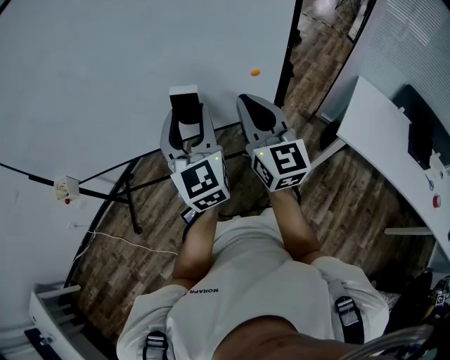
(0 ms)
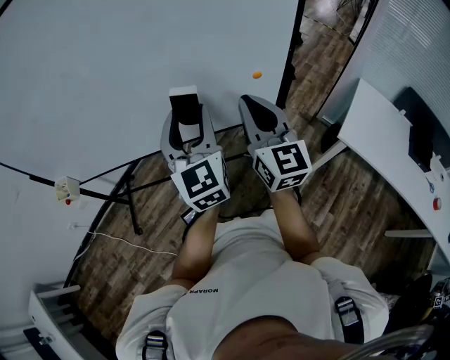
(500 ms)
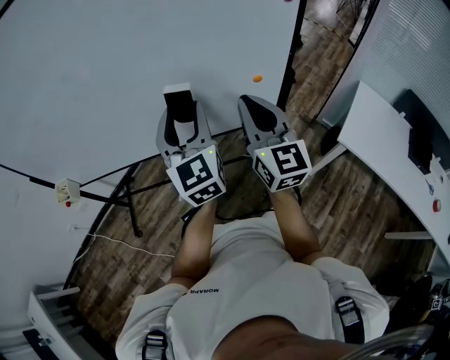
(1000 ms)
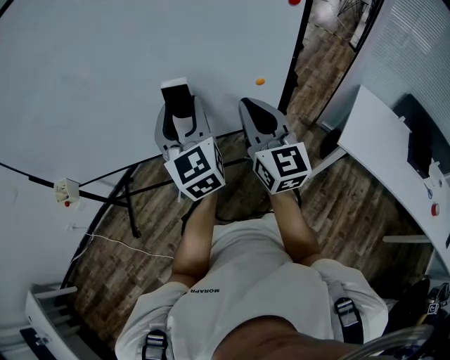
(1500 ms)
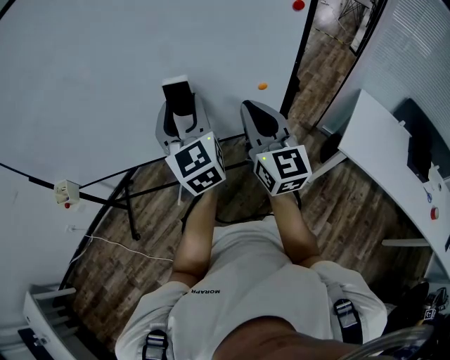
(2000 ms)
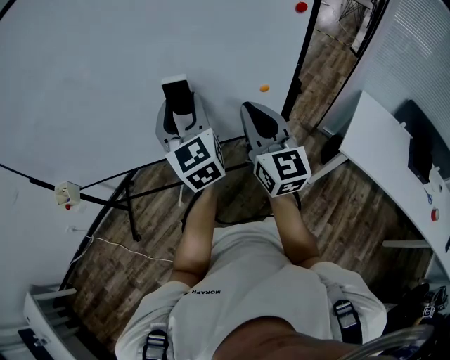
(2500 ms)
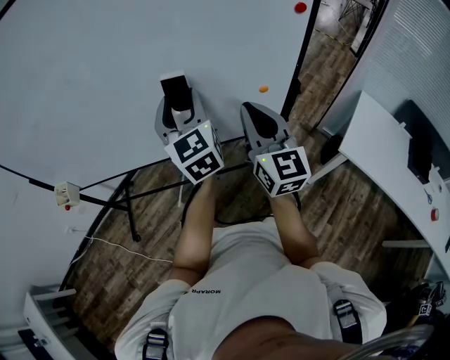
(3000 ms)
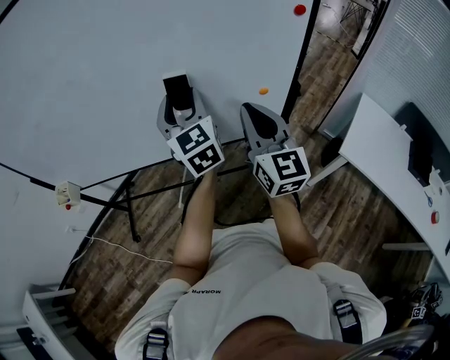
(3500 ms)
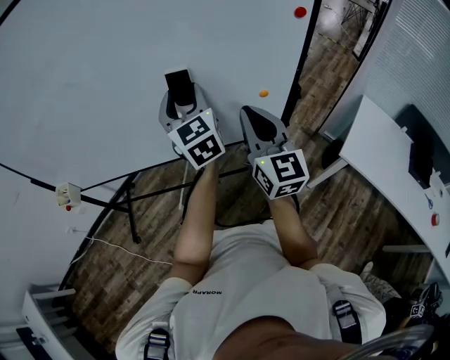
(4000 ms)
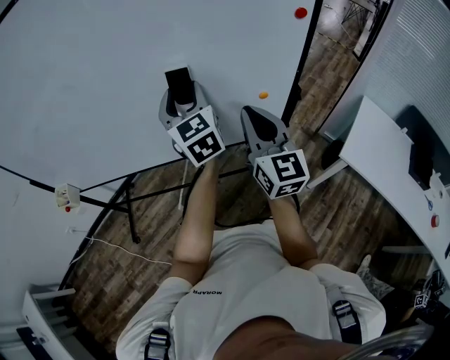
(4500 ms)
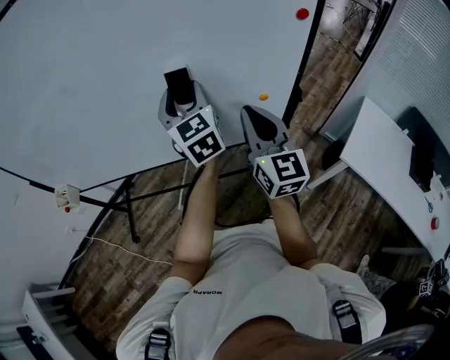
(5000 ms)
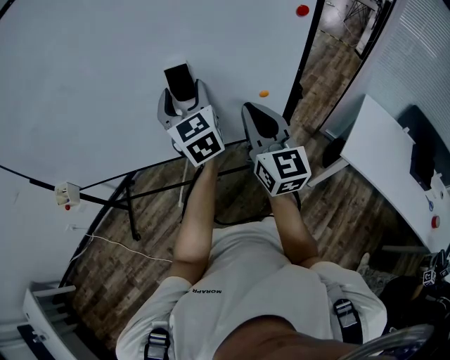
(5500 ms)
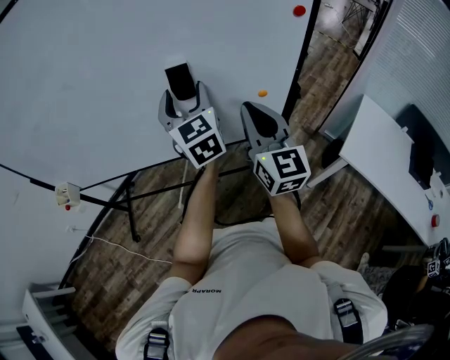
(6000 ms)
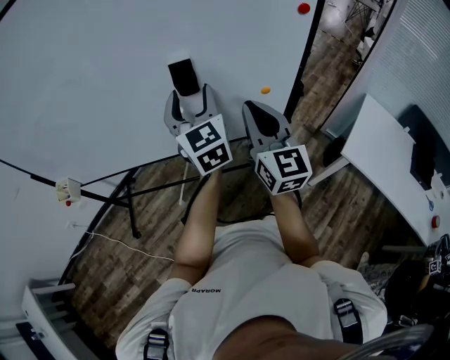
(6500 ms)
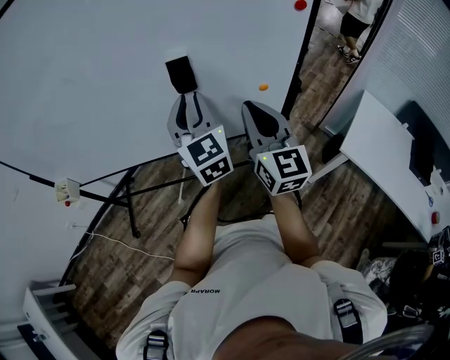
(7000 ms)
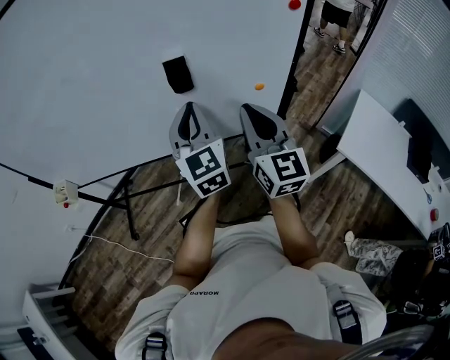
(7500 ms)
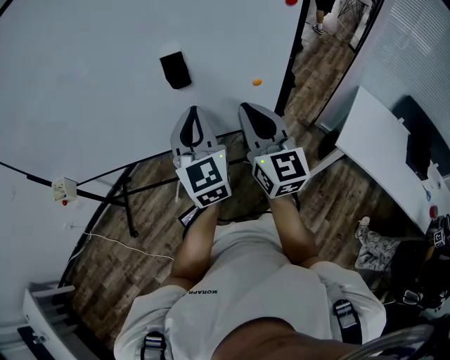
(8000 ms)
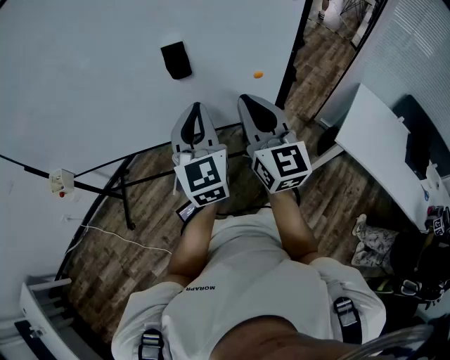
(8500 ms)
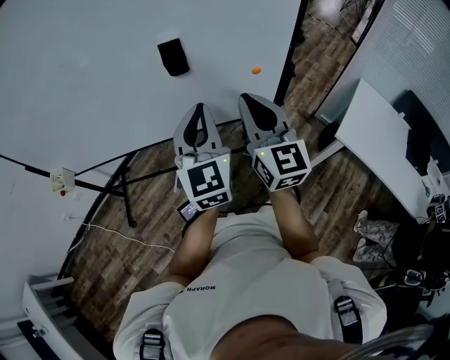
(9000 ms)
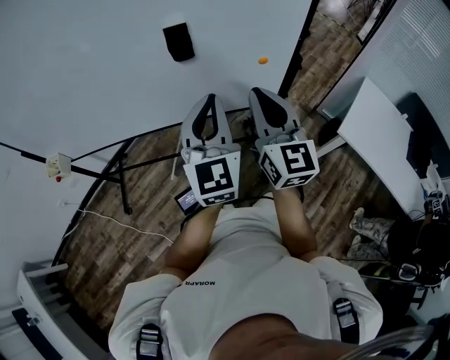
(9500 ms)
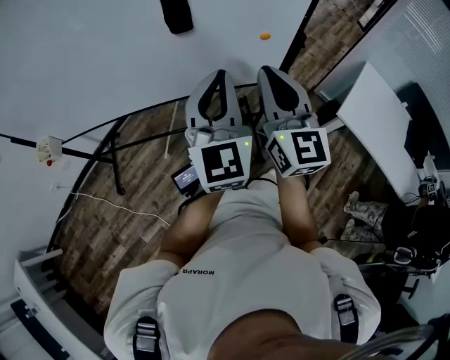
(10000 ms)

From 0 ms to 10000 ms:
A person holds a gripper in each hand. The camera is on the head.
From 0 ms to 2000 ms: The left gripper is displaced forward by approximately 5 cm.
From 2000 ms to 4000 ms: The left gripper travels forward by roughly 5 cm.
From 4000 ms to 6000 ms: There are only small adjustments of the grippers.
From 6000 ms to 8000 ms: The left gripper moves backward, roughly 10 cm, and closes up.
From 8000 ms to 10000 ms: The left gripper shifts approximately 5 cm backward.

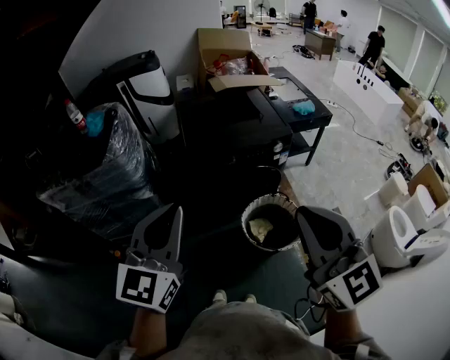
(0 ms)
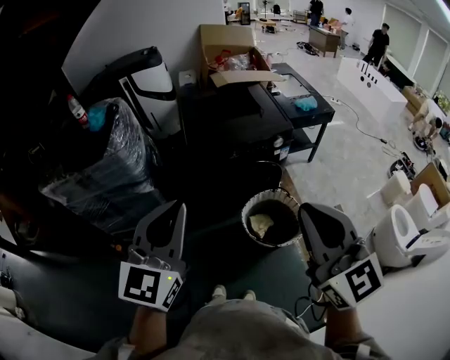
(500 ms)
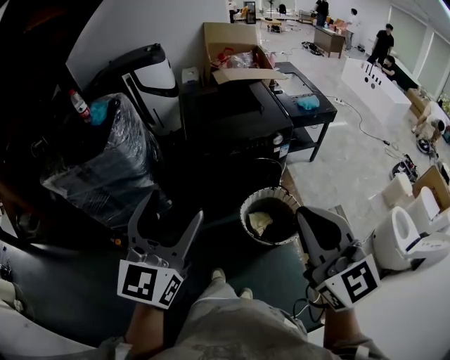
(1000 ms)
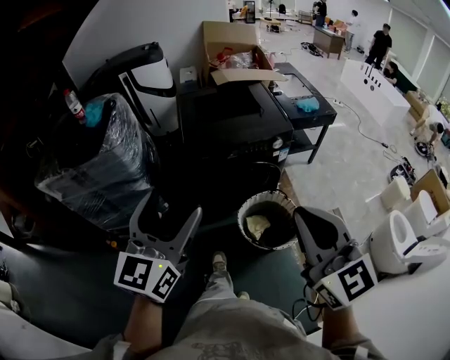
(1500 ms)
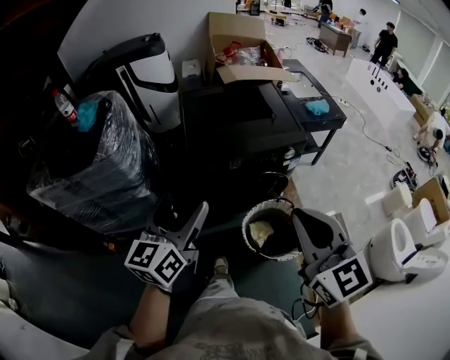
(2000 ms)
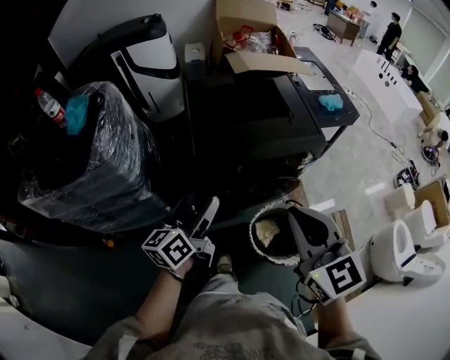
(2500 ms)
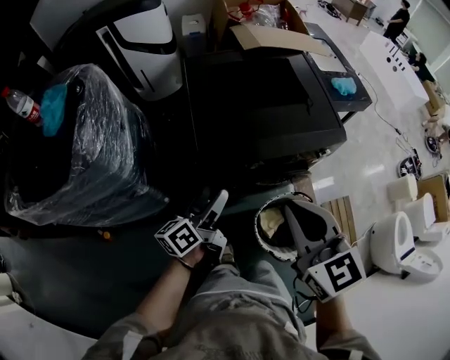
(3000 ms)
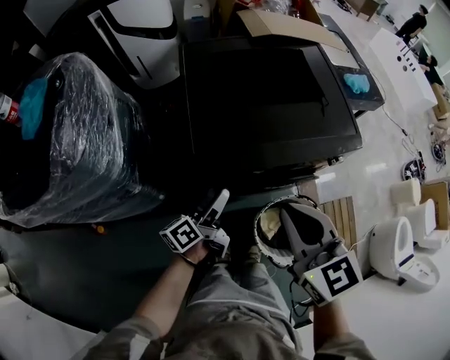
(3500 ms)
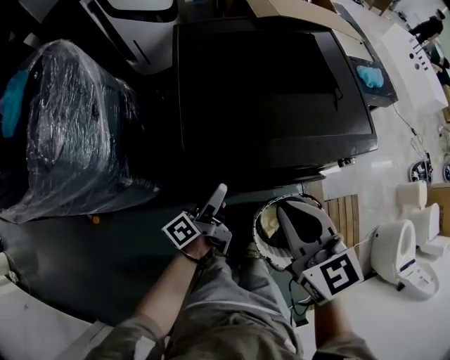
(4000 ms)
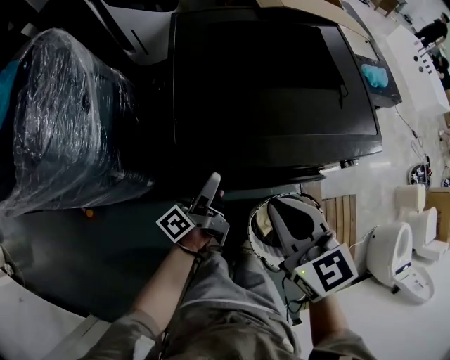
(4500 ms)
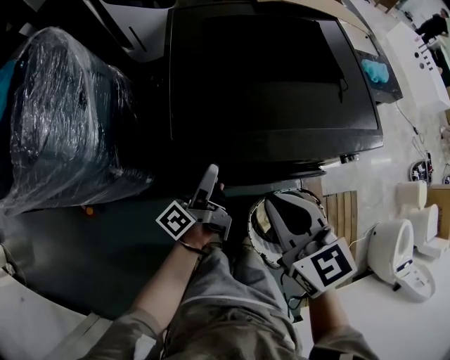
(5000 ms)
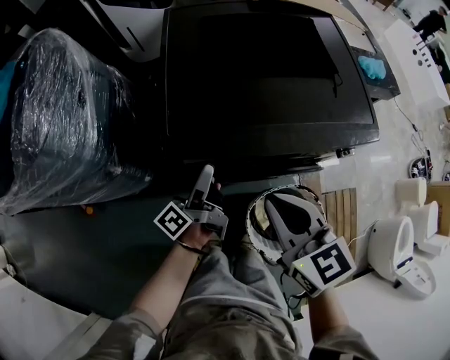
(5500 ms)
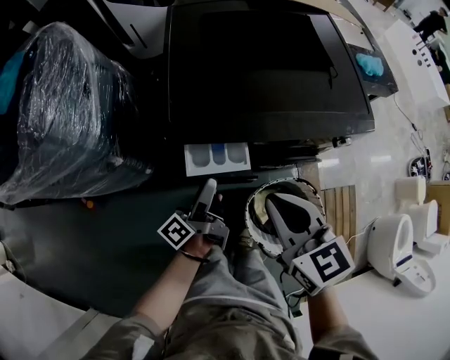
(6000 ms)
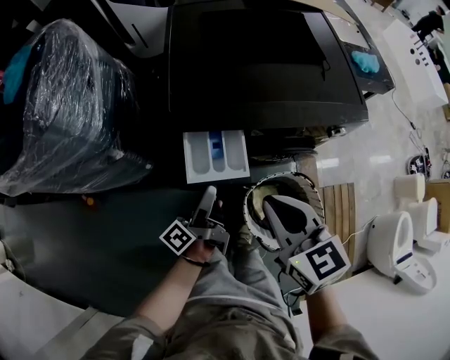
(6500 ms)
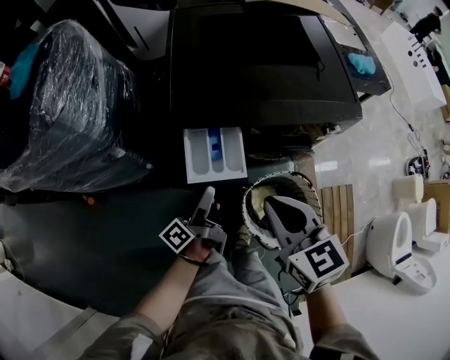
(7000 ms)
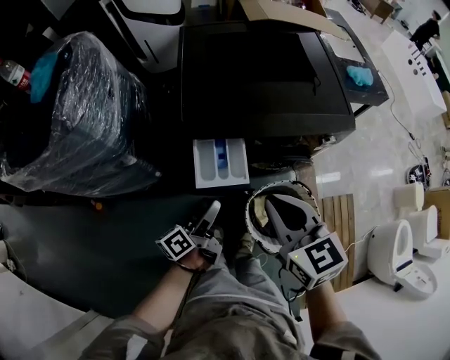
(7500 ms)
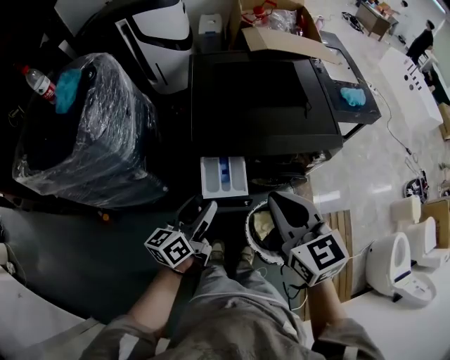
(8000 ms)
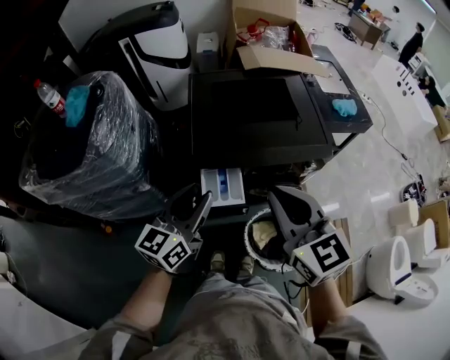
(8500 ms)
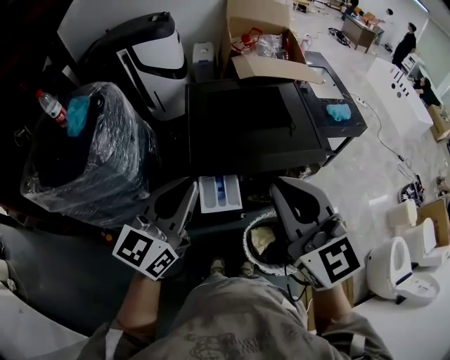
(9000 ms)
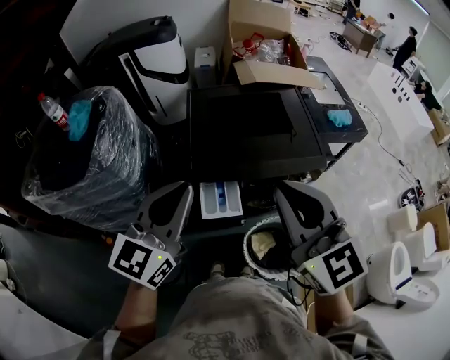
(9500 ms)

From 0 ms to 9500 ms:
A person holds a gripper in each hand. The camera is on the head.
From 0 ms to 2000 ms: Both grippers travel together forward and downward, approximately 15 cm. The left gripper rotates roughly 30 degrees, and opens its fingers.
From 2000 ms to 4000 ms: The left gripper moves downward and forward, some 40 cm, and rotates around the line of its fingers by approximately 60 degrees, counterclockwise from behind, while the right gripper heads forward and downward, covering roughly 35 cm, and changes its angle by about 20 degrees.
From 4000 ms to 5500 ms: There are only small adjustments of the grippers.
From 5500 ms to 7500 ms: The right gripper goes about 10 cm backward and upward, while the left gripper is displaced backward by roughly 15 cm, and rotates roughly 20 degrees.
From 7500 ms to 9500 ms: Both grippers move upward, about 35 cm. The left gripper rotates around the line of its fingers by some 70 degrees, clockwise from behind, and closes its fingers, while the right gripper swivels roughly 30 degrees.

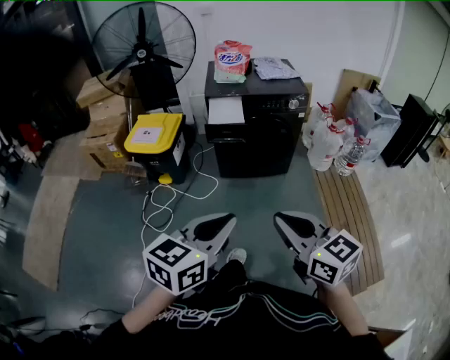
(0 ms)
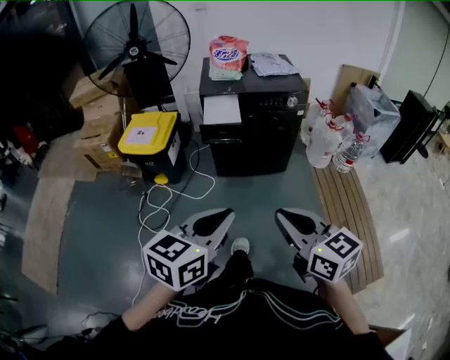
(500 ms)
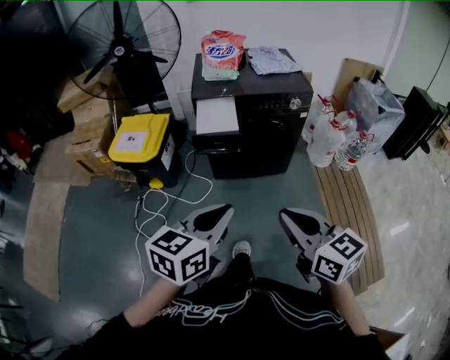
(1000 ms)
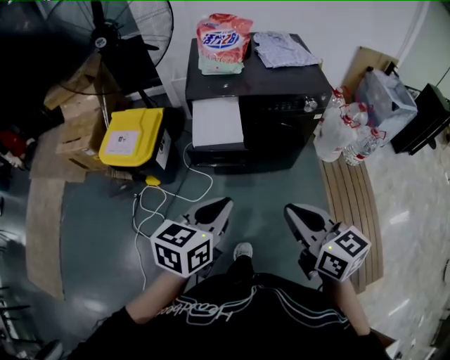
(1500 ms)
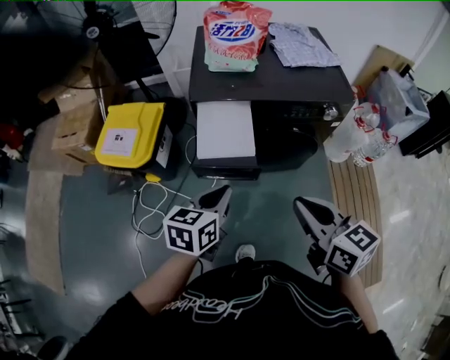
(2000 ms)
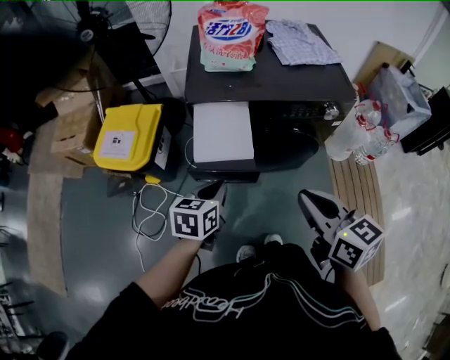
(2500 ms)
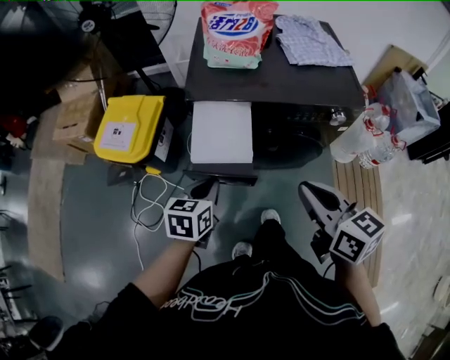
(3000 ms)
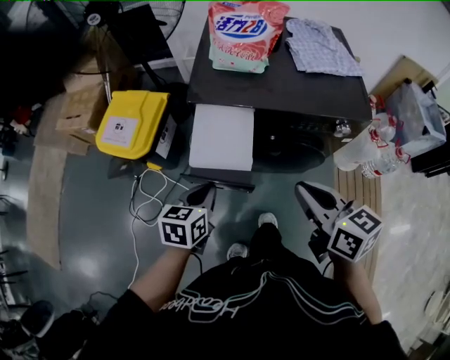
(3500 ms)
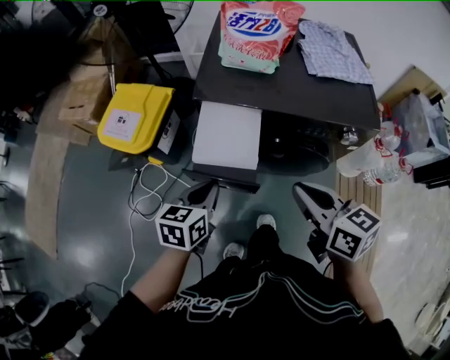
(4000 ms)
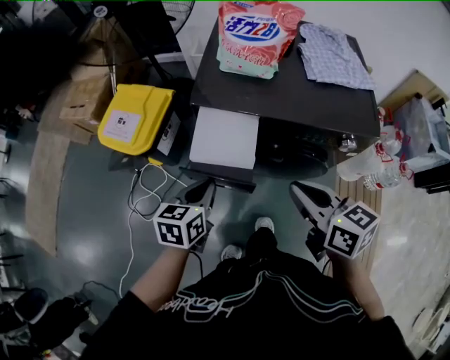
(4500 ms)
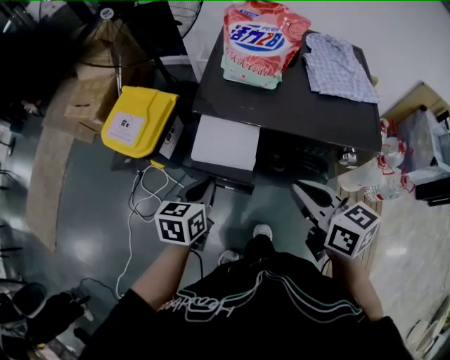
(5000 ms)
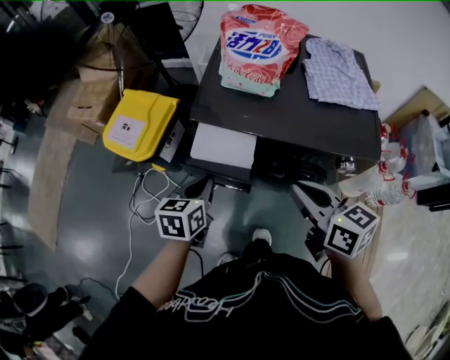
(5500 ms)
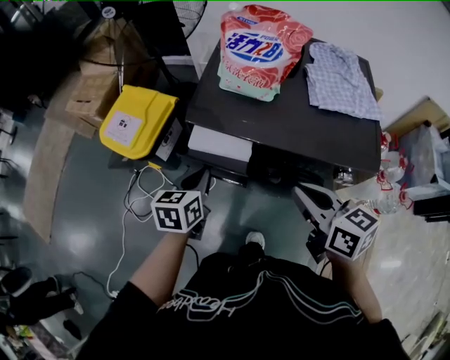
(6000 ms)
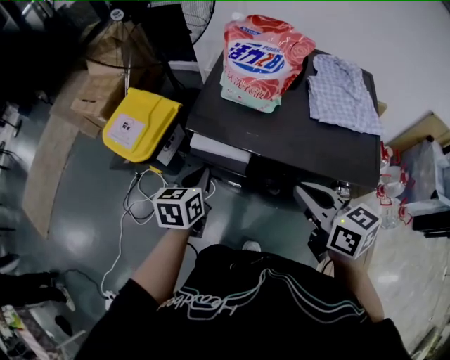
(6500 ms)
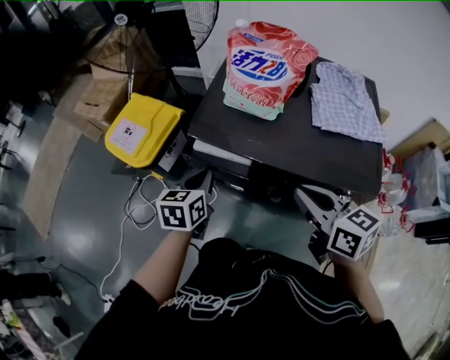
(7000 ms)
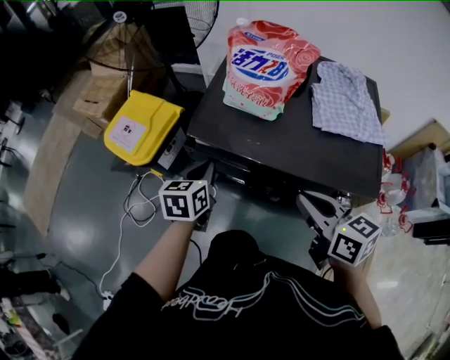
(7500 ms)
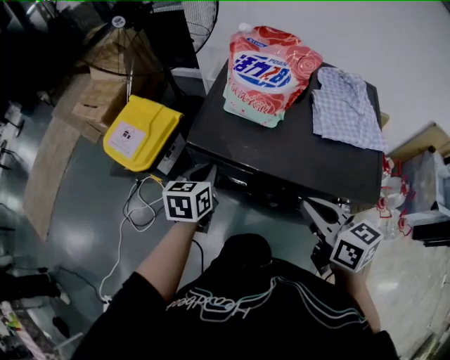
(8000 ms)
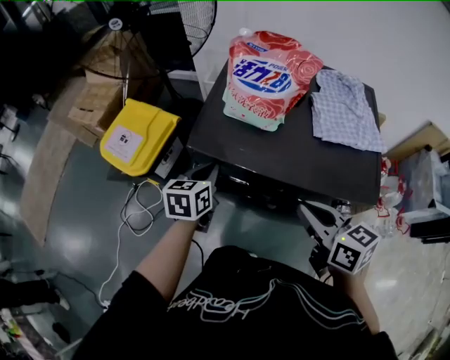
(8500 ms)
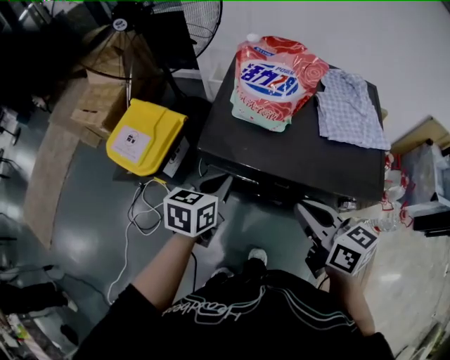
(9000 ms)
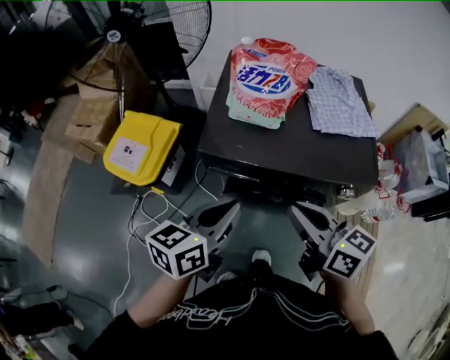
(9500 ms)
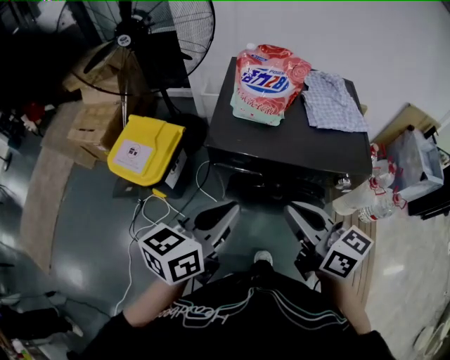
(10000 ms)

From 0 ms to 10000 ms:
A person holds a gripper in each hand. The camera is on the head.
From 0 ms to 2000 ms: Both grippers are carried forward, some 50 cm. The left gripper rotates approximately 20 degrees.
From 2000 ms to 4000 ms: The right gripper goes some 15 cm forward; the left gripper shifts approximately 10 cm forward and downward.
From 4000 ms to 6000 ms: The right gripper shifts roughly 10 cm forward and to the right, while the left gripper shifts about 10 cm forward.
From 6000 ms to 8000 ms: The left gripper moves forward, roughly 10 cm. Meanwhile the right gripper changes place by some 5 cm.
From 8000 ms to 10000 ms: The left gripper is displaced upward and backward by approximately 25 cm, and swivels about 30 degrees. Meanwhile the right gripper goes some 20 cm to the left, upward and backward.
